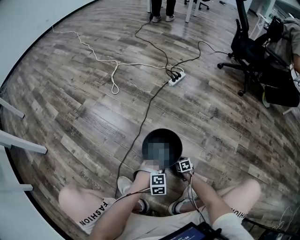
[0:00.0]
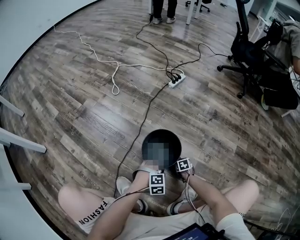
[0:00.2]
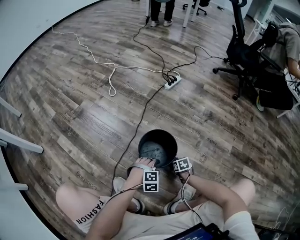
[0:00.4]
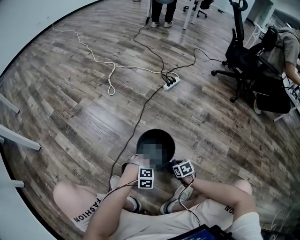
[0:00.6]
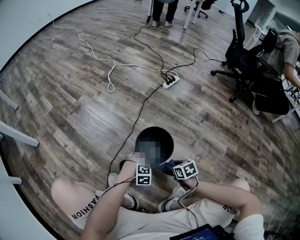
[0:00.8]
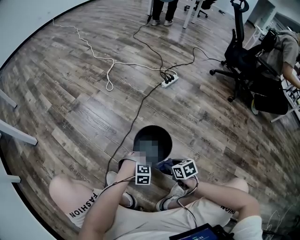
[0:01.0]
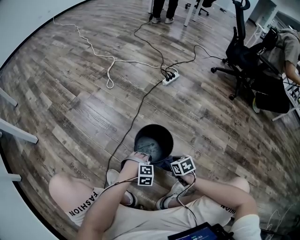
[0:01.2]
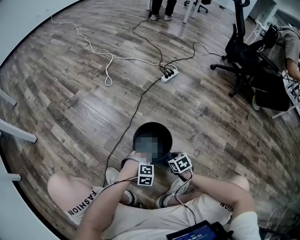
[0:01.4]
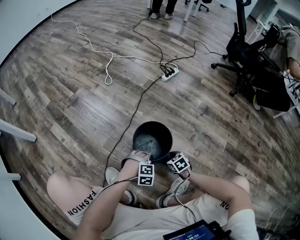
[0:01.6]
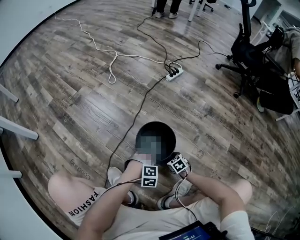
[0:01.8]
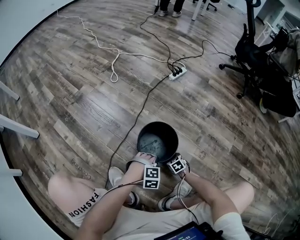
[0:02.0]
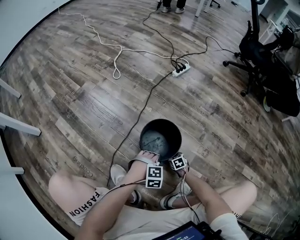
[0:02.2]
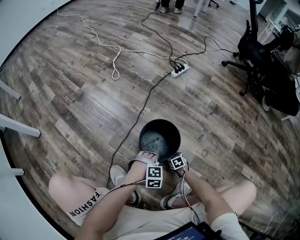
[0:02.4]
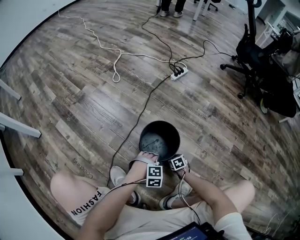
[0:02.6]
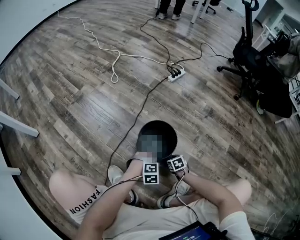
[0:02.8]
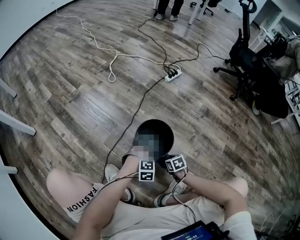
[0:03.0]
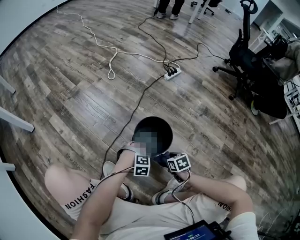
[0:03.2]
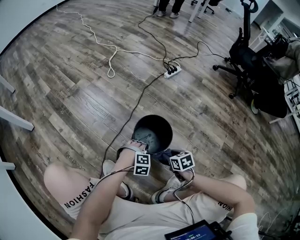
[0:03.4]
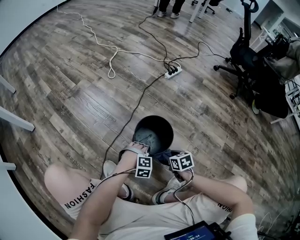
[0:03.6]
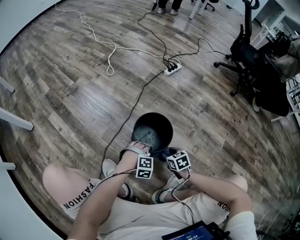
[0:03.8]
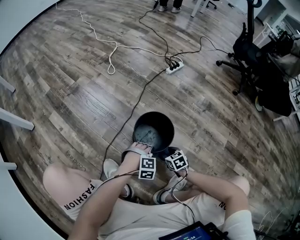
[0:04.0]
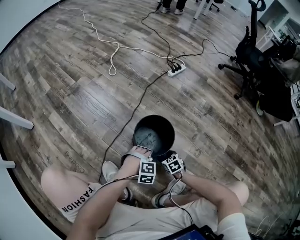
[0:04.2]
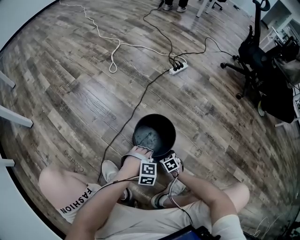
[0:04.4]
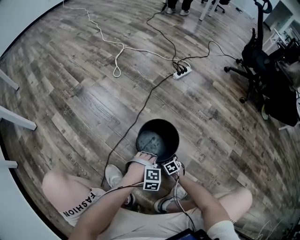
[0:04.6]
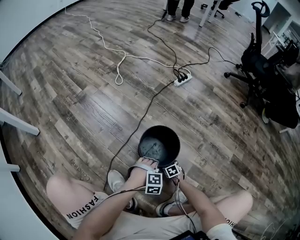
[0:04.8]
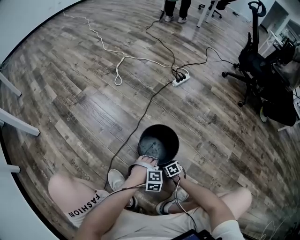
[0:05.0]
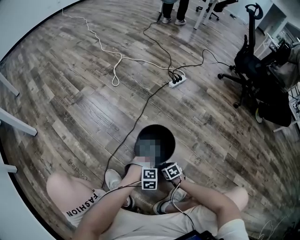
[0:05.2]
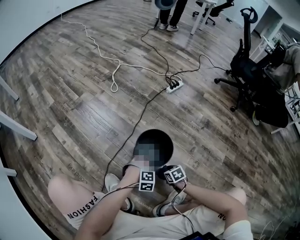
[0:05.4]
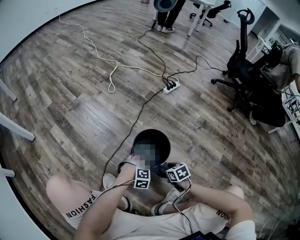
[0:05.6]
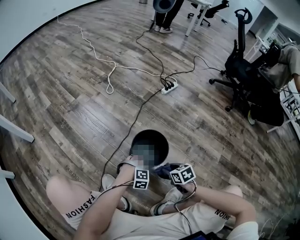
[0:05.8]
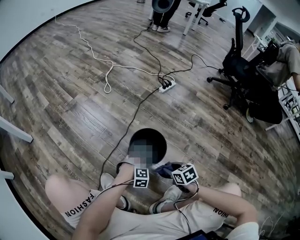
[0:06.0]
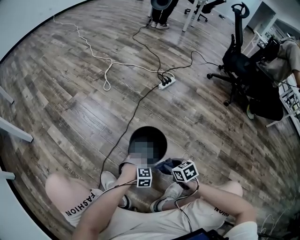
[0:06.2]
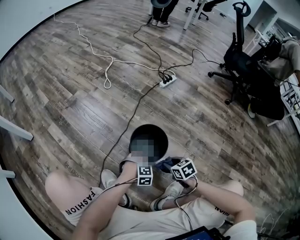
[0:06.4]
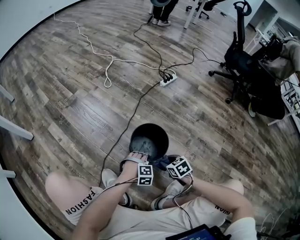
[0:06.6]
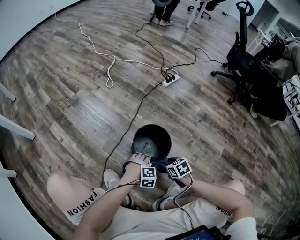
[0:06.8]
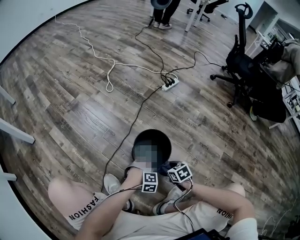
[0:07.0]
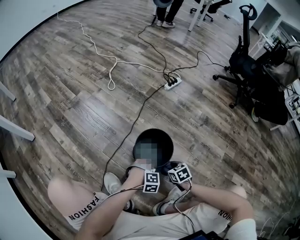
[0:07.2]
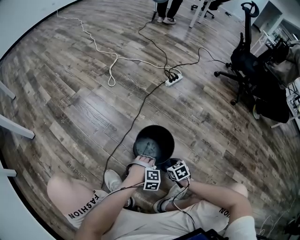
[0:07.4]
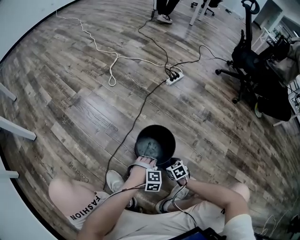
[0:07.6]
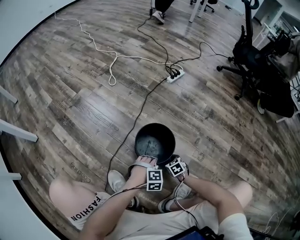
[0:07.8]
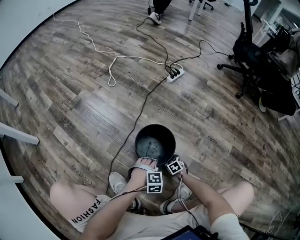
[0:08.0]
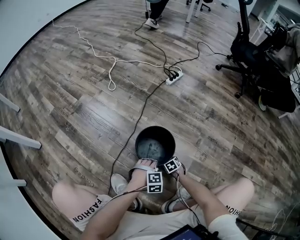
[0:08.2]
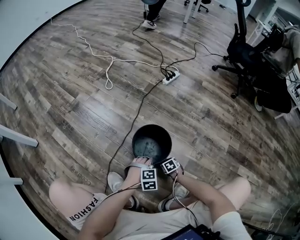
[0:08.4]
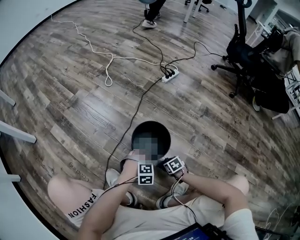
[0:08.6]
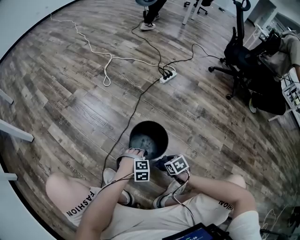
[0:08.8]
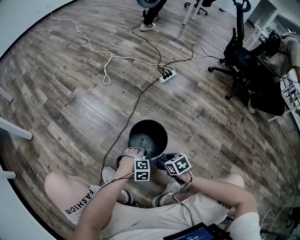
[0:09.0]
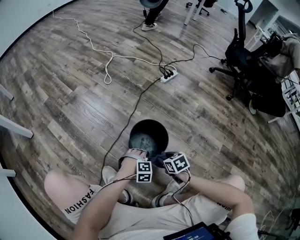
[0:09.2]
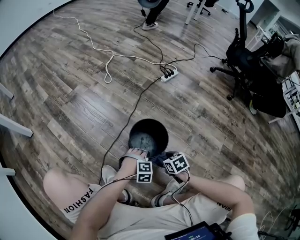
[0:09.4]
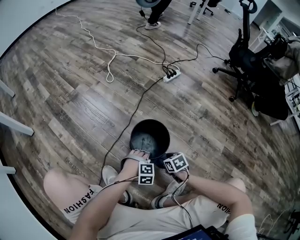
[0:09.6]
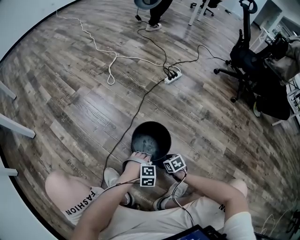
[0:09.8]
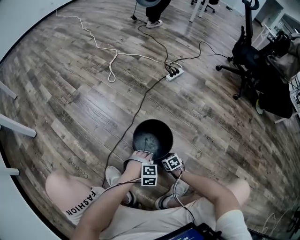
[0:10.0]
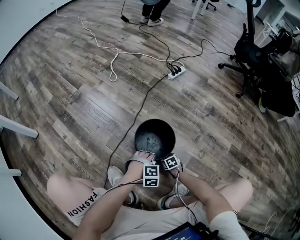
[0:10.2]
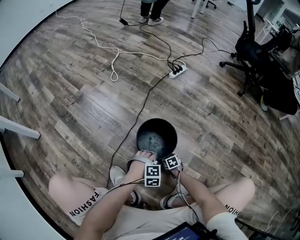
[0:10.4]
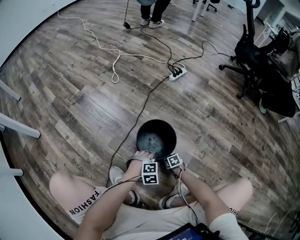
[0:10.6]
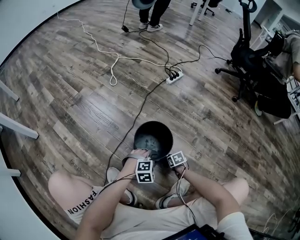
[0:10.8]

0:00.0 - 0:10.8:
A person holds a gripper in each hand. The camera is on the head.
0:00.0 - 0:01.6: The left gripper opens and closes again, while the right gripper shifts approximately 15 cm upward, and turns by some 20 degrees.
0:01.6 - 0:03.0: The left gripper opens, while the right gripper moves roughly 15 cm downward and comes back.
0:03.0 - 0:04.6: The right gripper is displaced downward by roughly 10 cm.
0:04.6 - 0:06.2: The right gripper goes some 25 cm upward.
0:06.2 - 0:07.8: The right gripper travels downward by about 20 cm.
0:07.8 - 0:09.2: The left gripper opens, then closes once more. Meanwhile the right gripper is displaced upward by about 15 cm.
0:09.2 - 0:10.8: The right gripper goes about 15 cm downward.

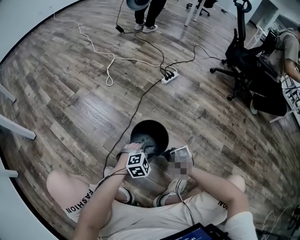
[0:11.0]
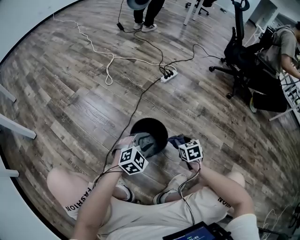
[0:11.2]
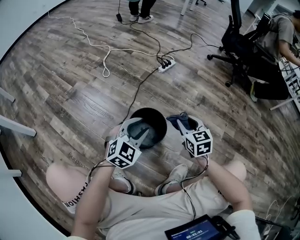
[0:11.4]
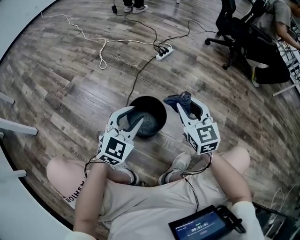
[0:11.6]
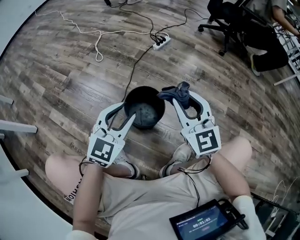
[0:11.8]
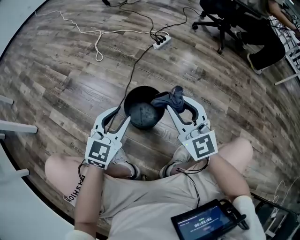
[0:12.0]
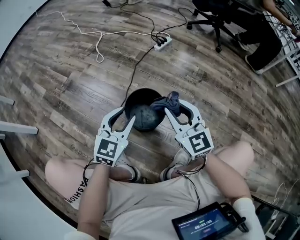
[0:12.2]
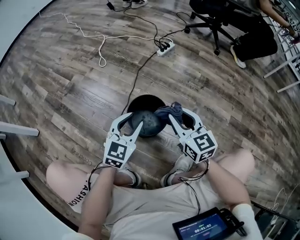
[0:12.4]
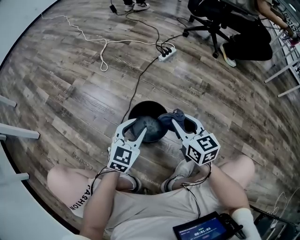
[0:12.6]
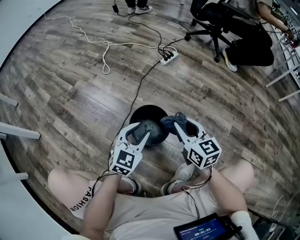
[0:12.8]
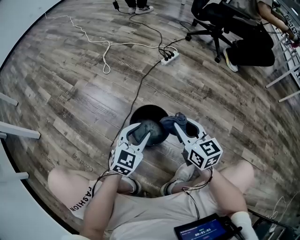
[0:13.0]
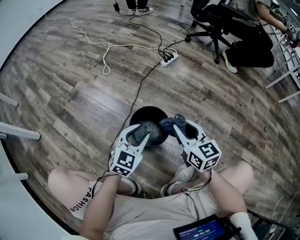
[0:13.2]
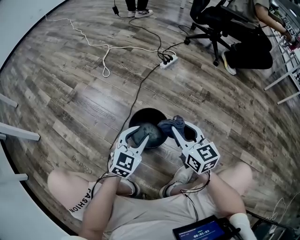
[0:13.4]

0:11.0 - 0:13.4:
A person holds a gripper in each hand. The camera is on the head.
0:11.0 - 0:12.2: The left gripper moves upward and to the left, some 15 cm, and rotates roughly 40 degrees; the right gripper moves upward, roughly 30 cm, and tips its fingers upward by about 60 degrees.
0:12.2 - 0:13.4: The right gripper swivels some 20 degrees. The left gripper ends up some 5 cm from where it was.

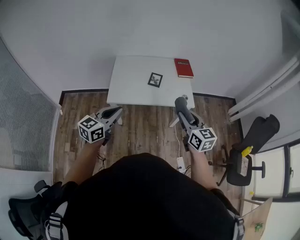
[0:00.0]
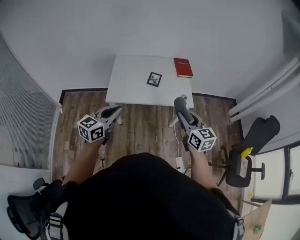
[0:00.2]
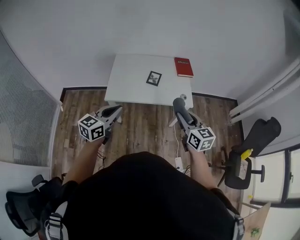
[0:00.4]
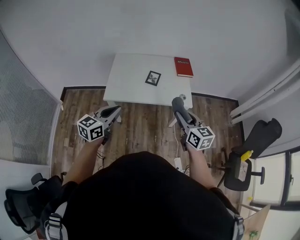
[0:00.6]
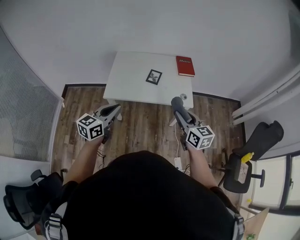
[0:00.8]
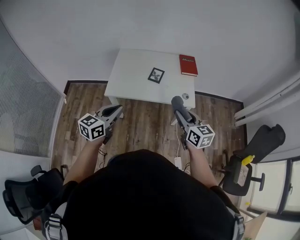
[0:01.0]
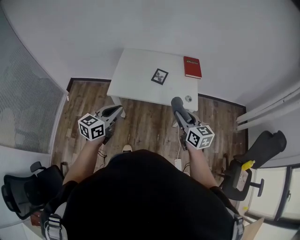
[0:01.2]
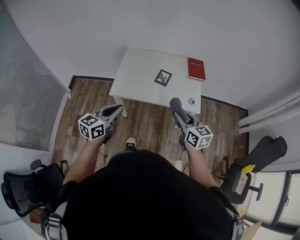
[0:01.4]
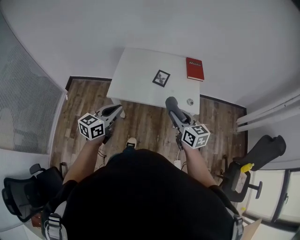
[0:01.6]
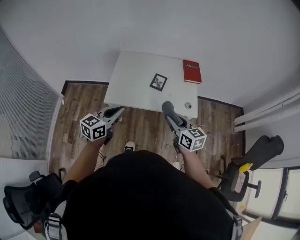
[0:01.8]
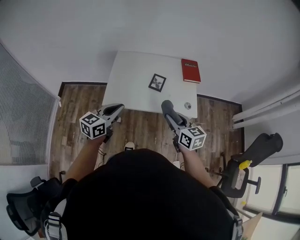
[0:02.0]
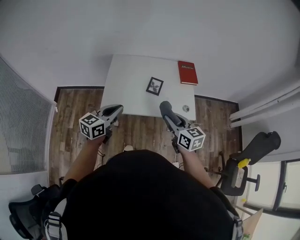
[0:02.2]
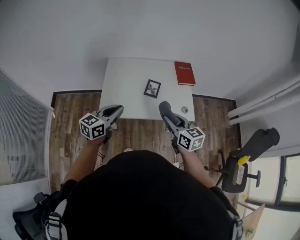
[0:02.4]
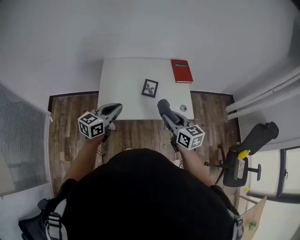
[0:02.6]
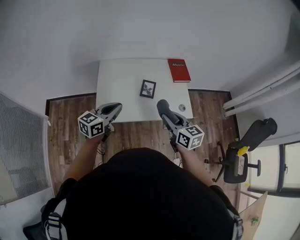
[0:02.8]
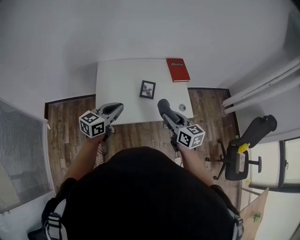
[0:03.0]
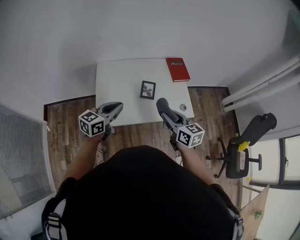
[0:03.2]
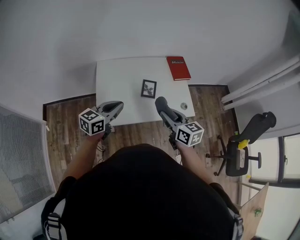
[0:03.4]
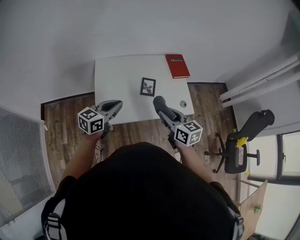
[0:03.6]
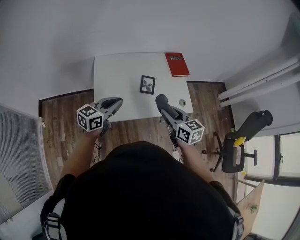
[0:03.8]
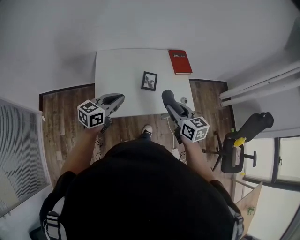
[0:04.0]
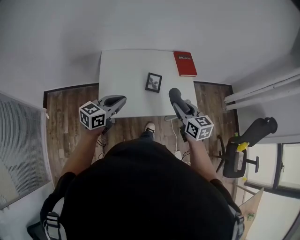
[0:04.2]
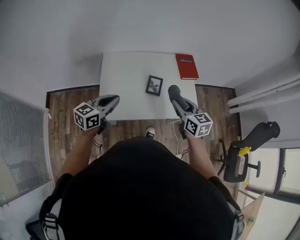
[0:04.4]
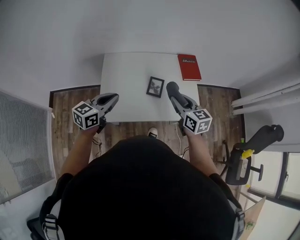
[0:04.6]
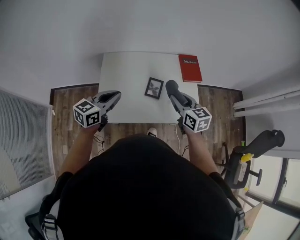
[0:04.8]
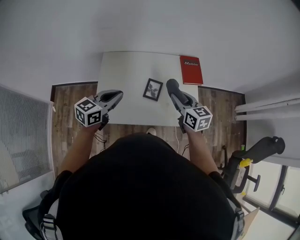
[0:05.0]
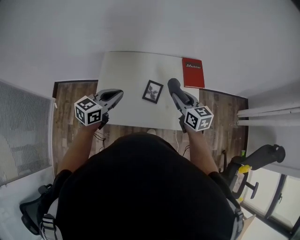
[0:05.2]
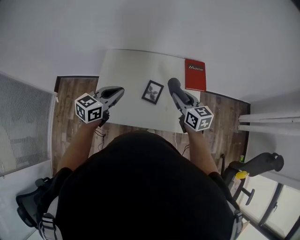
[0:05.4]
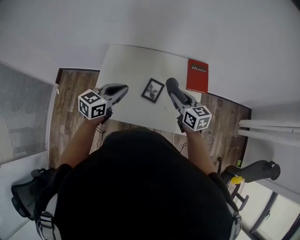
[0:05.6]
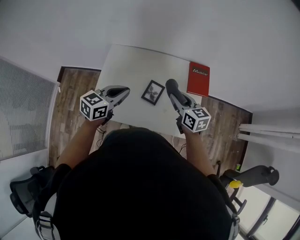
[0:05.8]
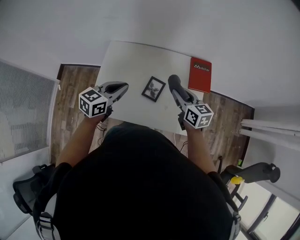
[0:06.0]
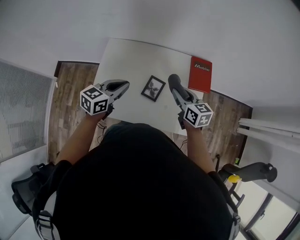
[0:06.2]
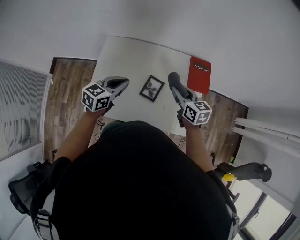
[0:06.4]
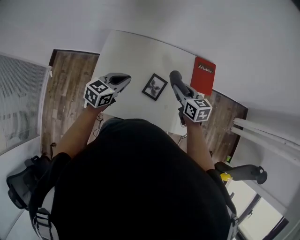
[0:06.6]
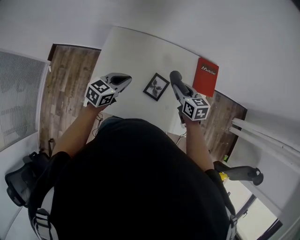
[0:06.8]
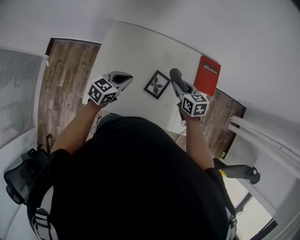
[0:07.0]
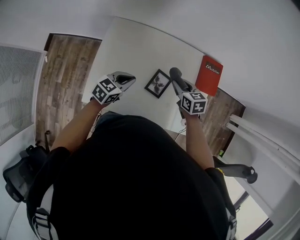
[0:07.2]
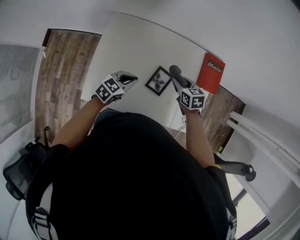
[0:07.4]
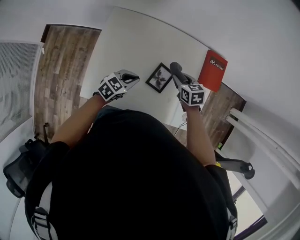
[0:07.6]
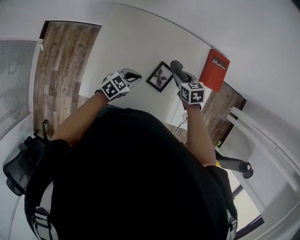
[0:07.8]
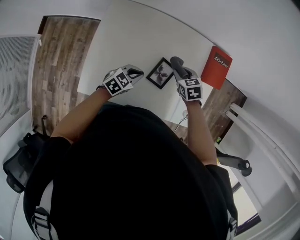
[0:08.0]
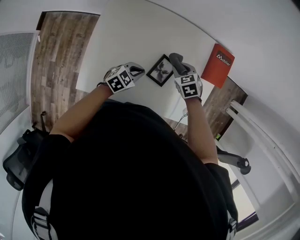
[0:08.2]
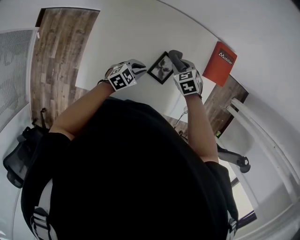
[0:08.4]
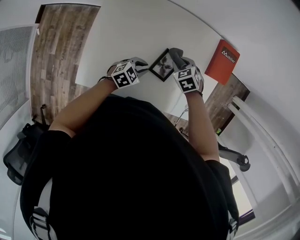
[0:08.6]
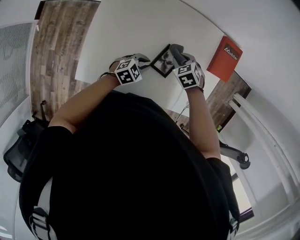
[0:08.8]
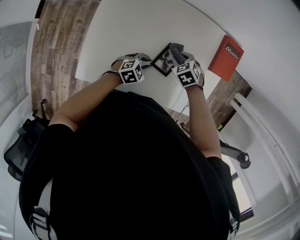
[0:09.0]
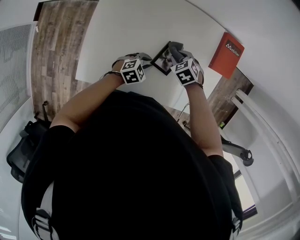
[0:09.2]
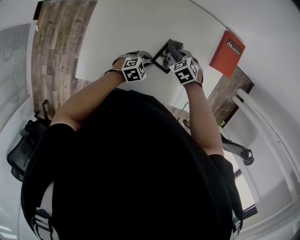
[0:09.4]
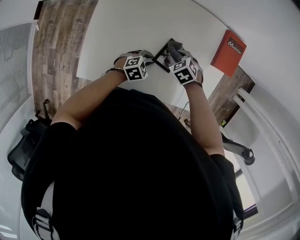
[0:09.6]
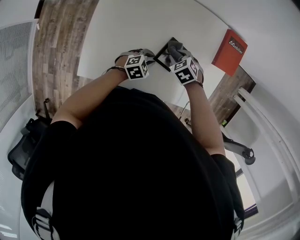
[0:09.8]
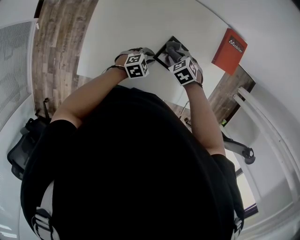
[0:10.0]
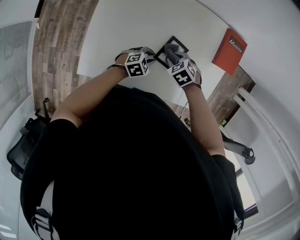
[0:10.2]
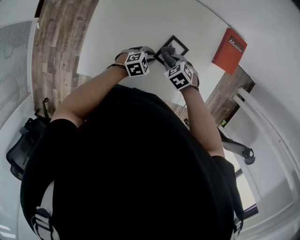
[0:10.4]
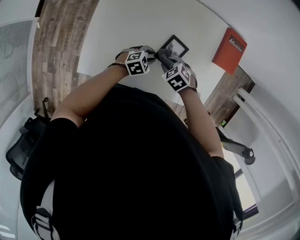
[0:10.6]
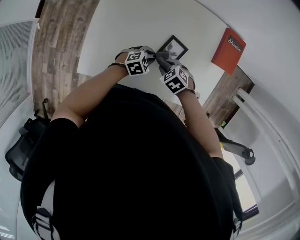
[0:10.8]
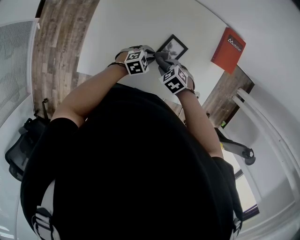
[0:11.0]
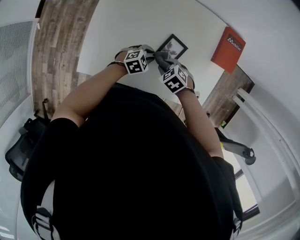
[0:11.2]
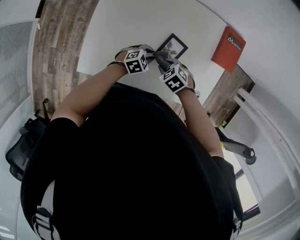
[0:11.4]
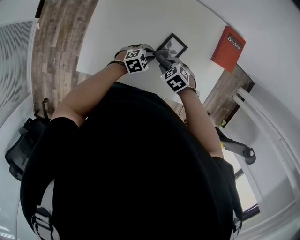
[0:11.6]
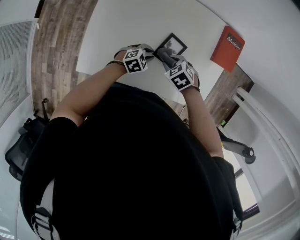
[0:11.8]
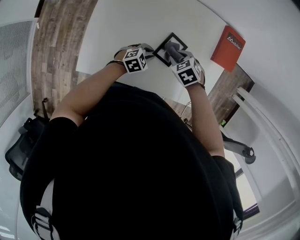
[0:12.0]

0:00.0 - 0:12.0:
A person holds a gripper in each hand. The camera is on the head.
0:00.0 - 0:01.6: The right gripper is displaced forward and downward by about 10 cm; the left gripper shifts approximately 5 cm forward.
0:01.6 - 0:03.0: The right gripper heads forward and to the left, covering some 15 cm, while the left gripper heads forward, covering about 20 cm.
0:03.0 - 0:04.4: The left gripper heads to the left, covering roughly 5 cm. Meanwhile the right gripper goes approximately 10 cm forward.
0:04.4 - 0:06.0: The left gripper travels forward and to the right by roughly 20 cm. Meanwhile the right gripper goes roughly 20 cm forward.
0:06.0 - 0:07.6: The right gripper travels downward and forward by about 20 cm, and points its fingers roughly 30 degrees further downward; the left gripper travels downward by about 20 cm.
0:07.6 - 0:09.0: Both grippers travel together downward, some 10 cm. The left gripper swivels some 20 degrees. Meanwhile the right gripper turns by roughly 30 degrees.
0:09.0 - 0:10.4: The right gripper ends up about 10 cm from where it was.
0:10.4 - 0:12.0: The grippers stay close to where they were, moving slightly.
